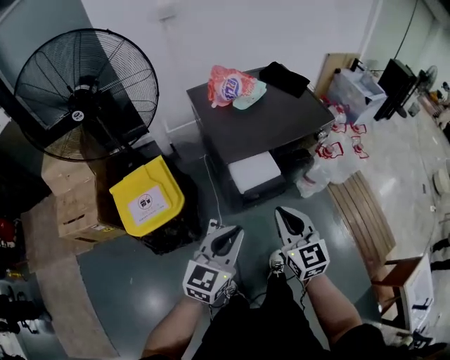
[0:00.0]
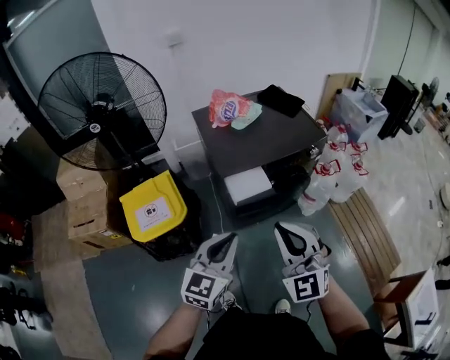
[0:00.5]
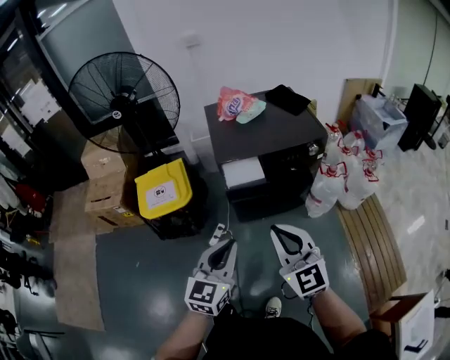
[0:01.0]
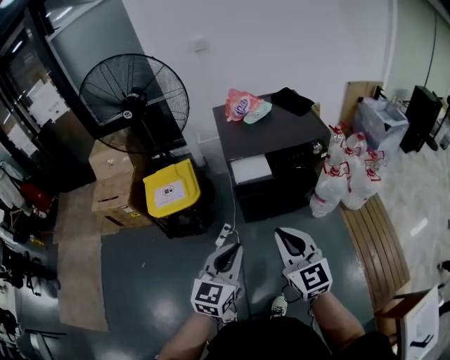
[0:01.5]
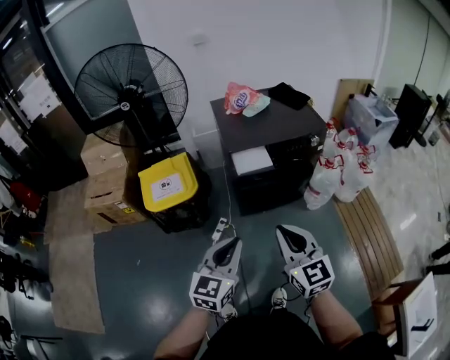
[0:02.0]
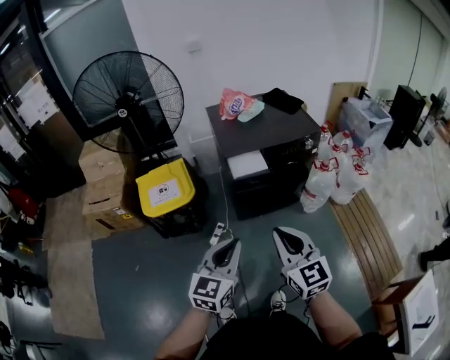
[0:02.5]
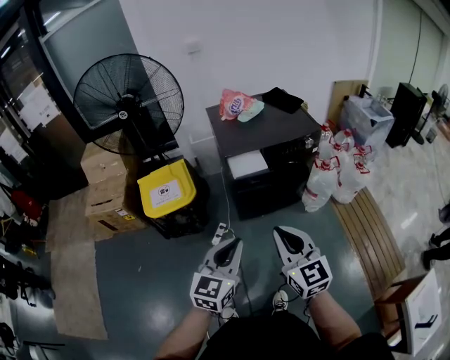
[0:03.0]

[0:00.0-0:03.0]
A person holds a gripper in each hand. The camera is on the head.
0:00.0 to 0:01.5: The right gripper travels backward, to the right and upward by some 25 cm. Meanwhile the left gripper goes approximately 25 cm backward and to the right, and turns by about 20 degrees.
0:01.5 to 0:03.0: The right gripper ends up some 5 cm from where it was.

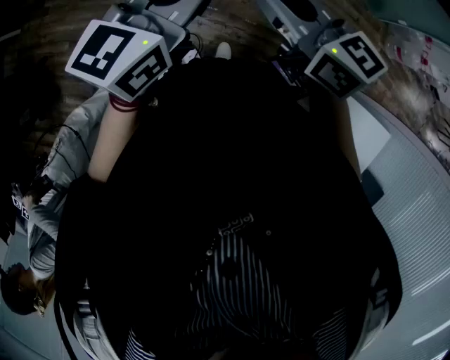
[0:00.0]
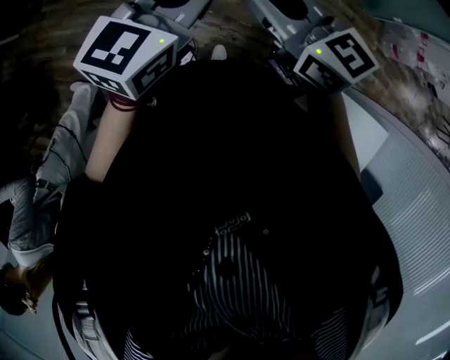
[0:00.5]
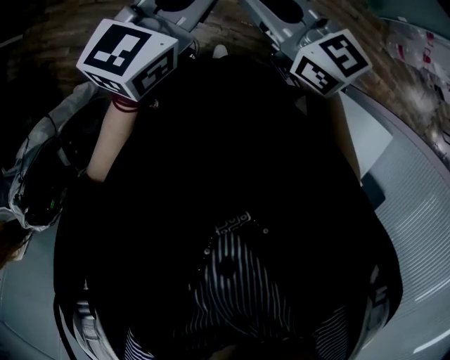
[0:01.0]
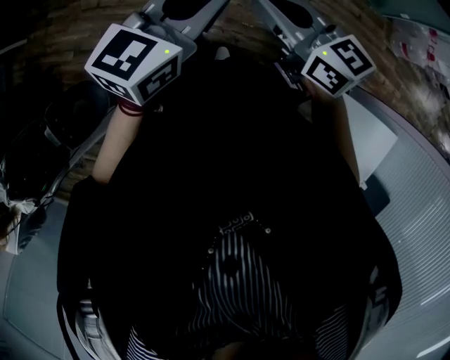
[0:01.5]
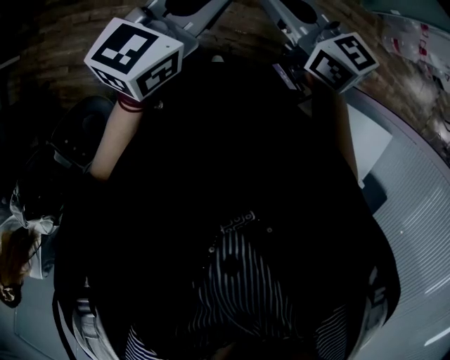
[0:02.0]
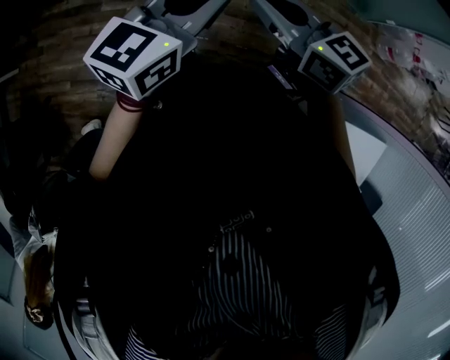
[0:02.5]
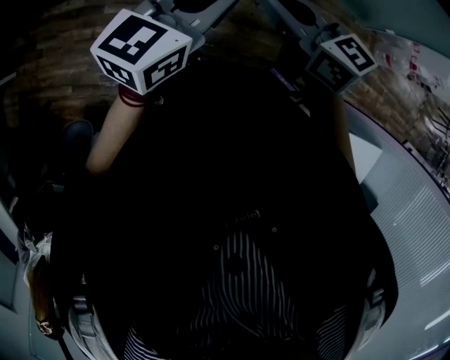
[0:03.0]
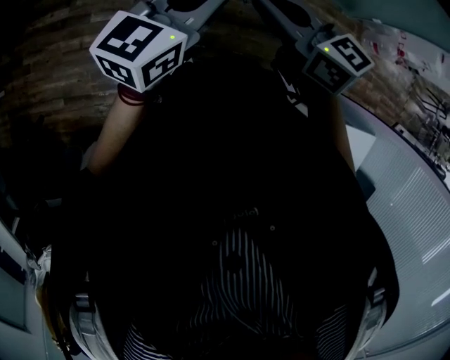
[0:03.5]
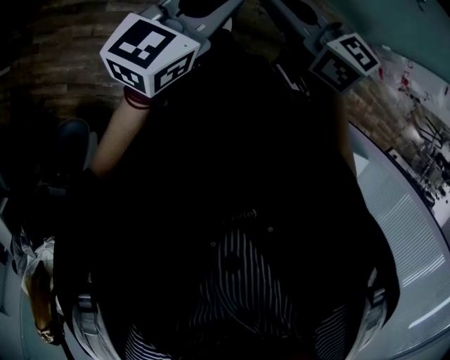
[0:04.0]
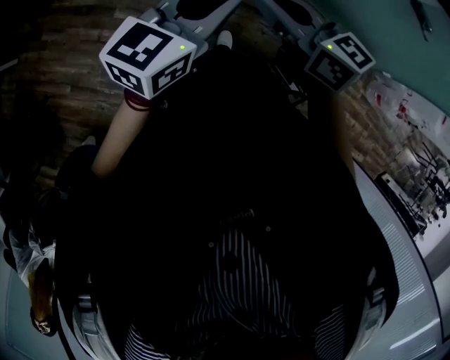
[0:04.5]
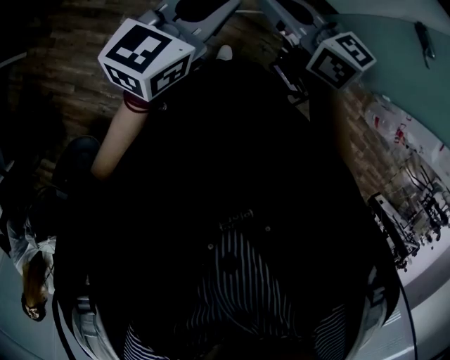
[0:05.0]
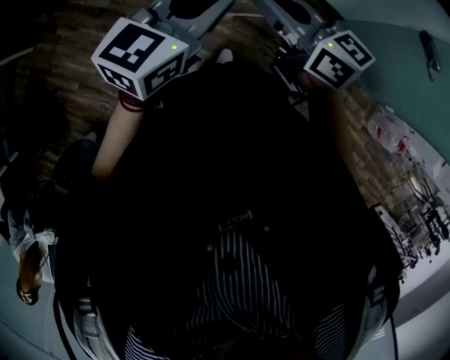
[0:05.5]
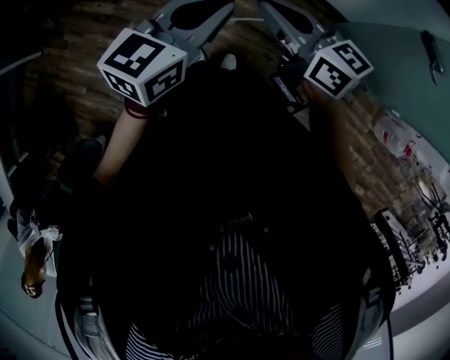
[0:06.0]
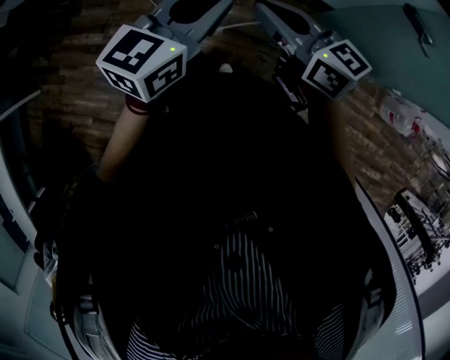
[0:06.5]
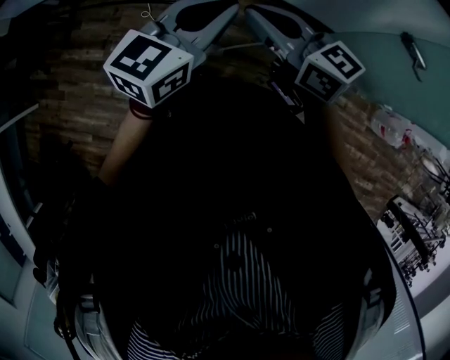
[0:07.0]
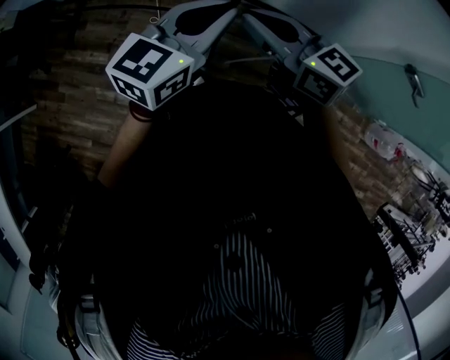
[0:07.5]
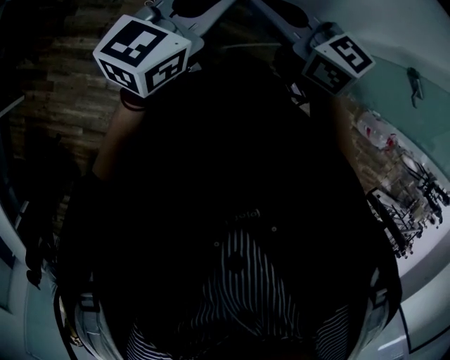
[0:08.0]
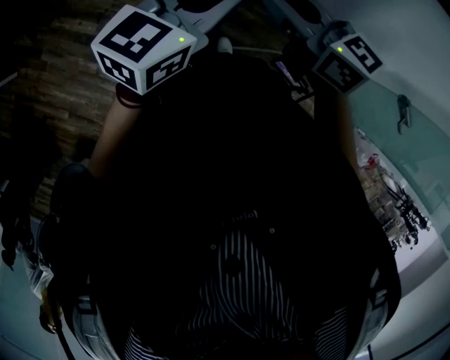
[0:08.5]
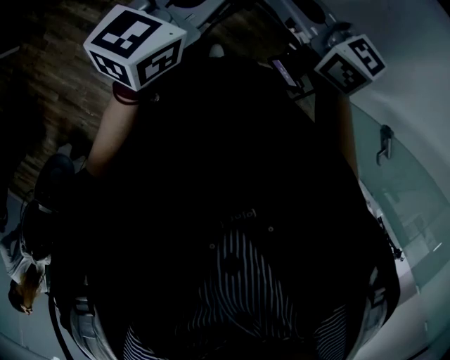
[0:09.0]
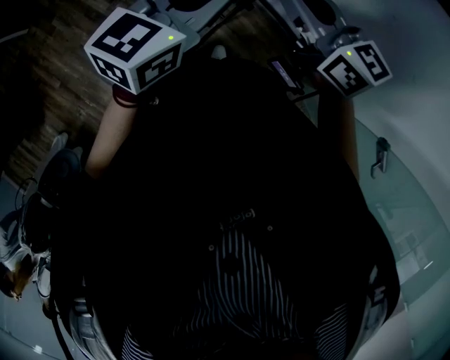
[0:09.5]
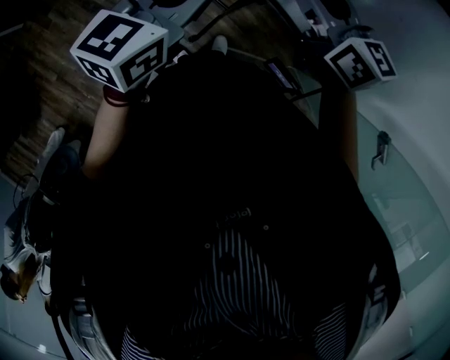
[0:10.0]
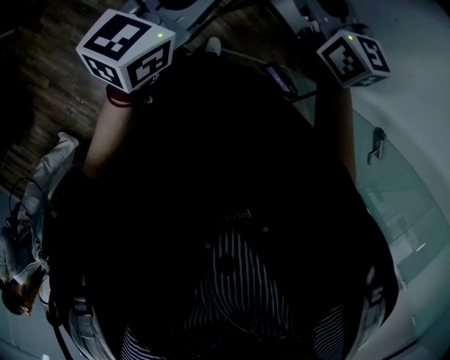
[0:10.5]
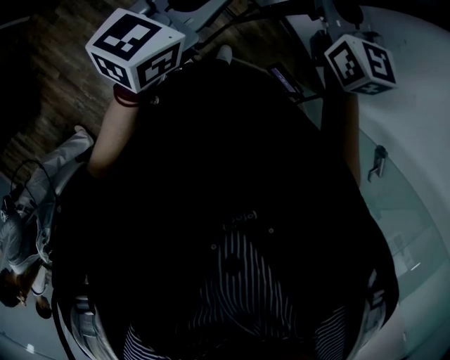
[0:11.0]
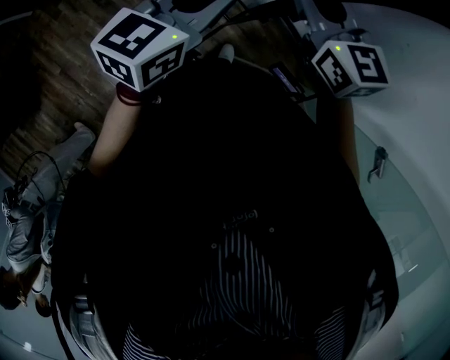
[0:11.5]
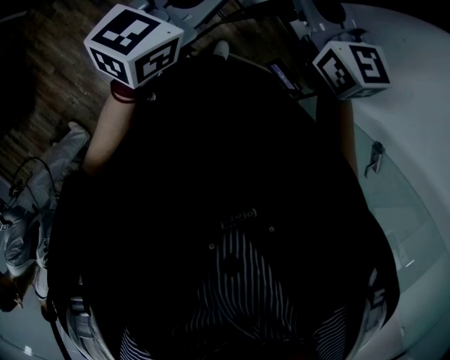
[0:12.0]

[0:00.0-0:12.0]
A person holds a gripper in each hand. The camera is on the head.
0:00.0 to 0:02.0: Both grippers move to the right and forward, some 15 cm.
0:02.0 to 0:04.0: The two grippers go about 30 cm forward and to the left.
0:04.0 to 0:06.0: The two grippers go roughly 30 cm forward and to the right.
0:06.0 to 0:08.0: Both grippers move forward and to the left, roughly 30 cm.
0:08.0 to 0:10.0: The right gripper goes roughly 20 cm to the right and forward, and opens its fingers. The left gripper travels forward by some 5 cm, and turns by some 30 degrees.
0:10.0 to 0:12.0: The right gripper travels to the left by about 5 cm, and closes.

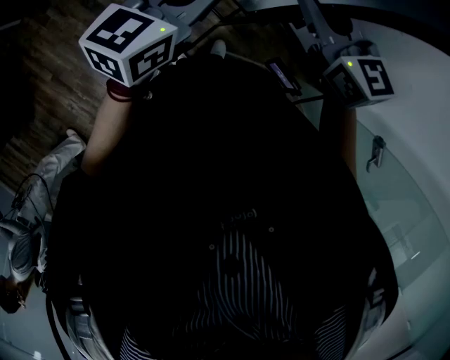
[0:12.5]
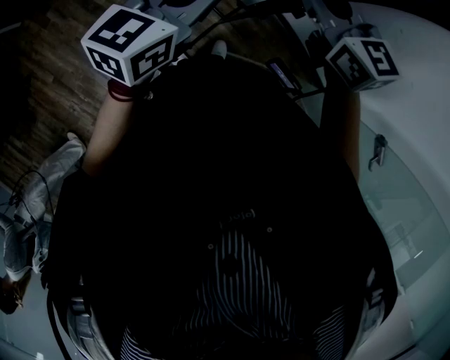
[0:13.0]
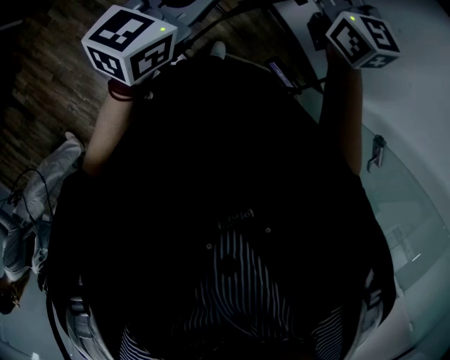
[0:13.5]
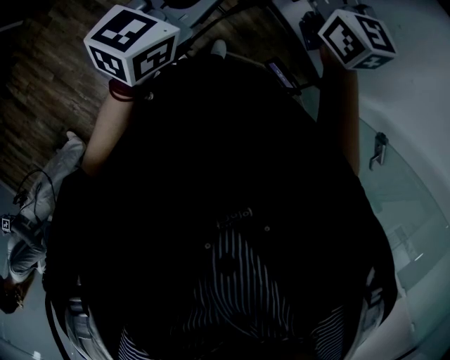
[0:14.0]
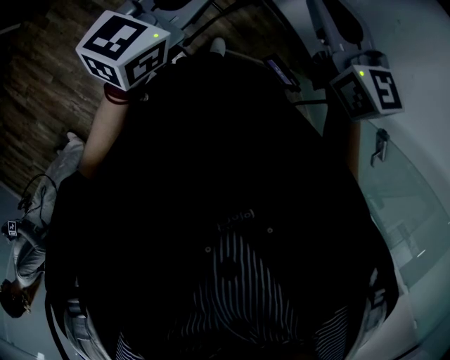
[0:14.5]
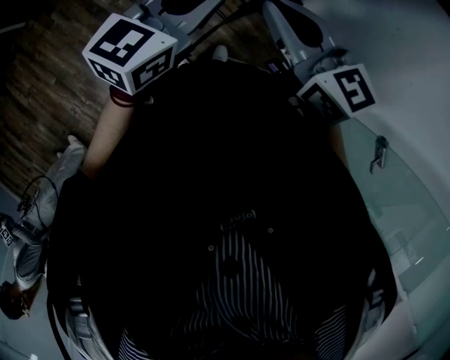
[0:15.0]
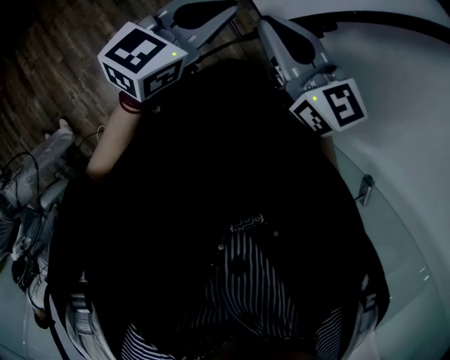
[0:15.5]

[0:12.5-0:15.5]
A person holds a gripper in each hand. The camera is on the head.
0:12.5 to 0:14.0: The right gripper heads forward, covering roughly 5 cm.
0:14.0 to 0:15.5: The left gripper goes about 5 cm to the left. The right gripper moves to the left and backward, approximately 15 cm.

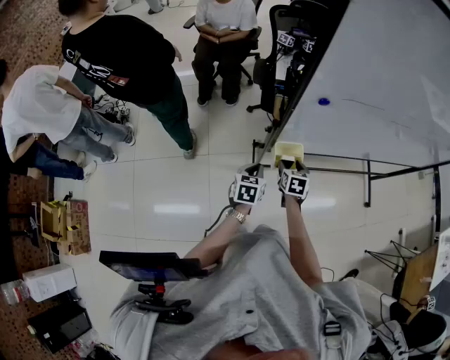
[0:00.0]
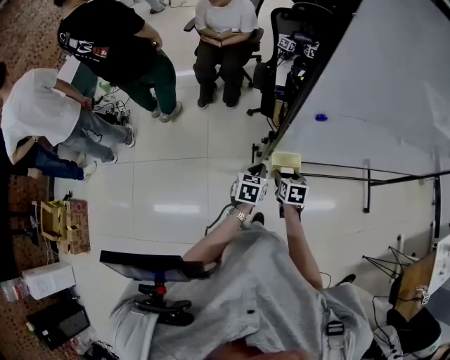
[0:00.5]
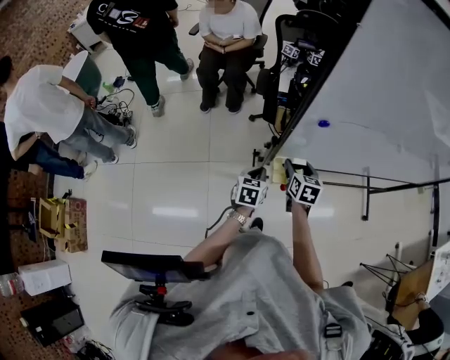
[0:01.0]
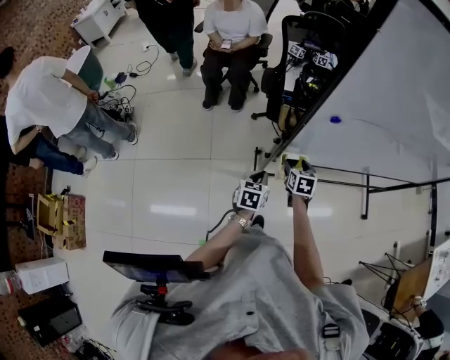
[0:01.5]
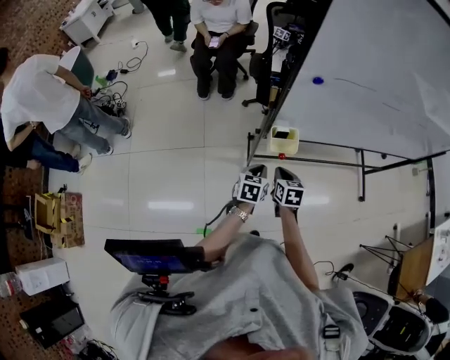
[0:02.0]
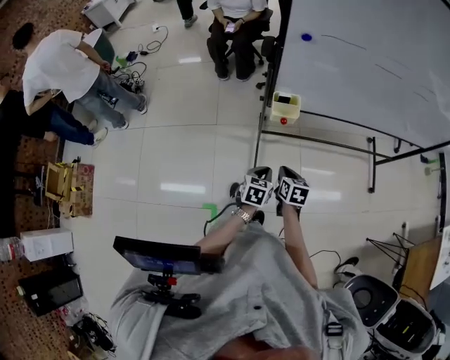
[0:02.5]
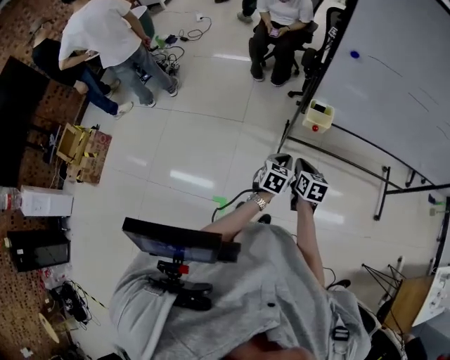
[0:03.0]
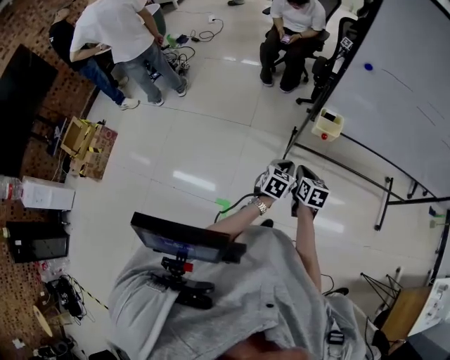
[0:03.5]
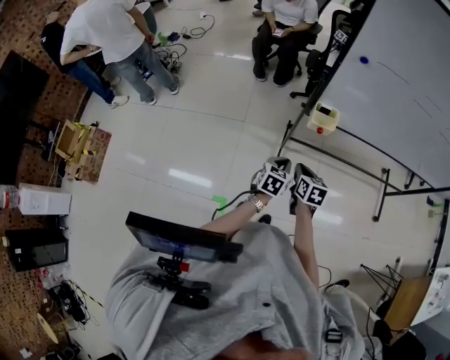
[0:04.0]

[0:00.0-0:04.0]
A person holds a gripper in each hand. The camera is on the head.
0:00.0 to 0:02.0: The right gripper moves backward, approximately 10 cm, and closes up. Meanwhile the left gripper shifts about 5 cm backward.
0:02.0 to 0:04.0: Both grippers travel together backward, about 15 cm.

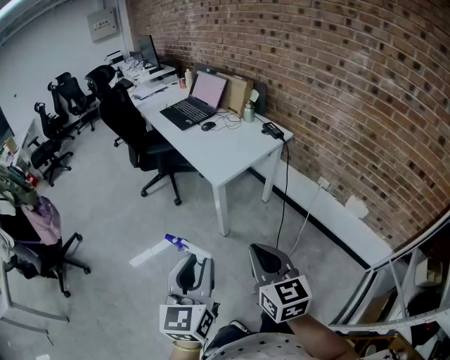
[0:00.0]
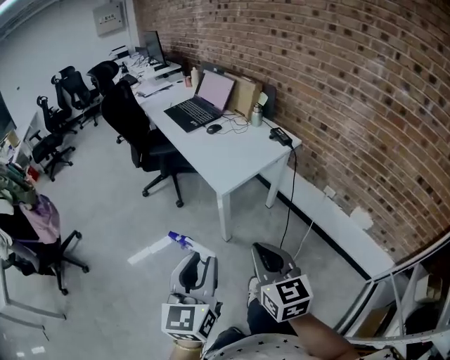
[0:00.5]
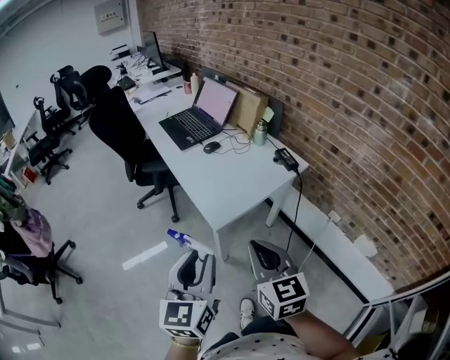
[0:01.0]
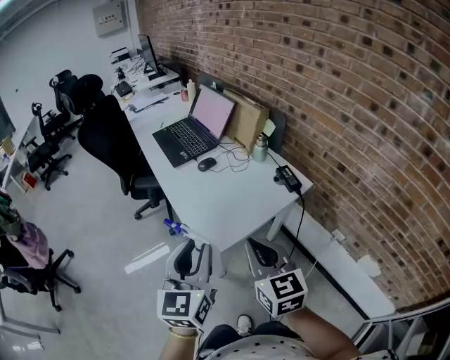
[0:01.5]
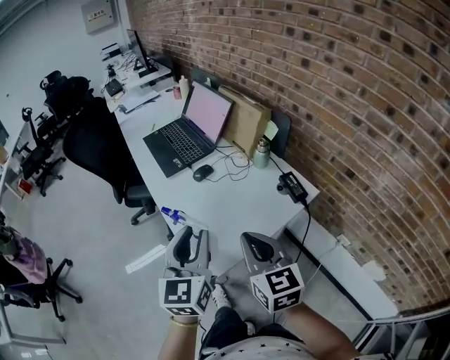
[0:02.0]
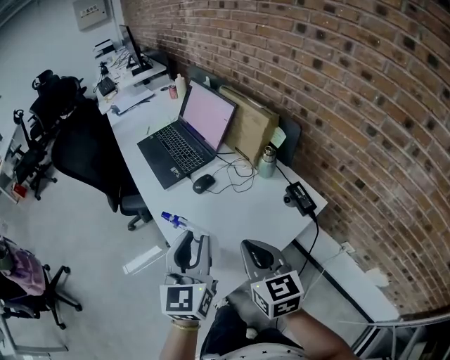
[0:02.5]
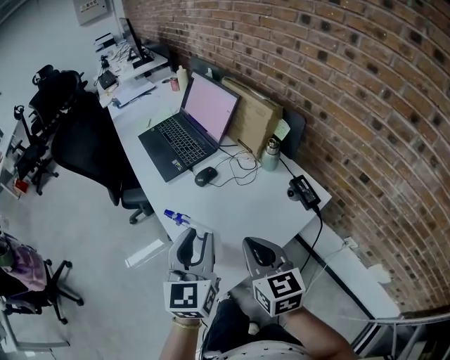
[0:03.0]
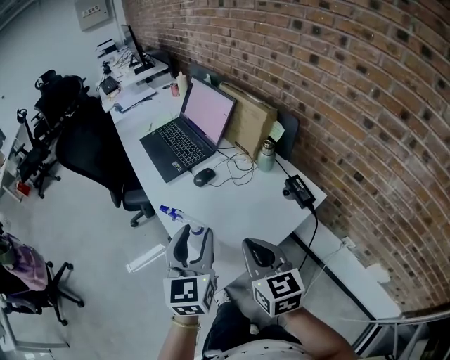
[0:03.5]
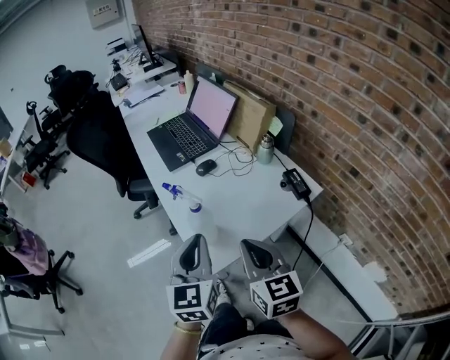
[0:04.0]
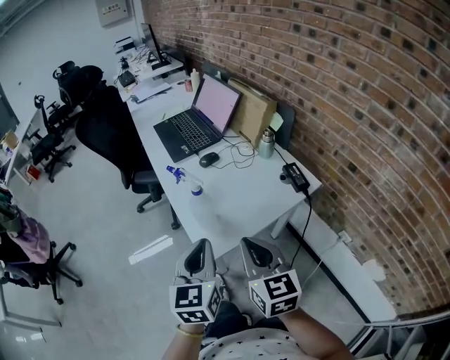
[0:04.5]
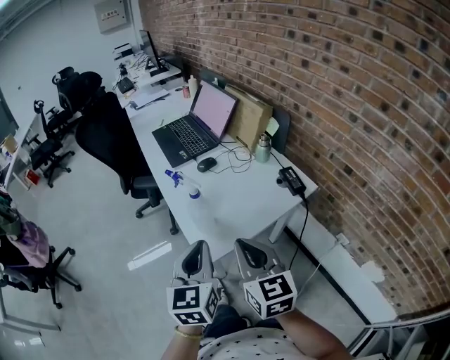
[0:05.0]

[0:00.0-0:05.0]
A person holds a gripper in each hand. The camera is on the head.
0:00.0 to 0:02.5: Both grippers are carried forward, roughly 60 cm.
0:02.5 to 0:05.0: The two grippers go some 15 cm backward. The left gripper closes.
